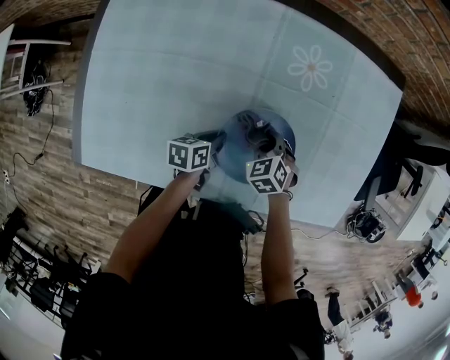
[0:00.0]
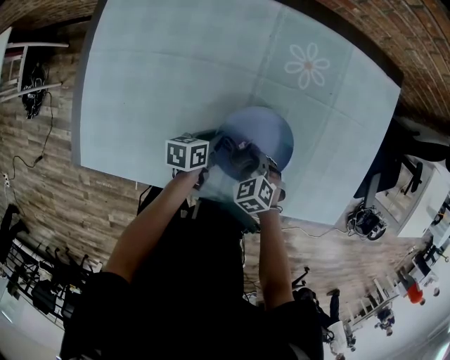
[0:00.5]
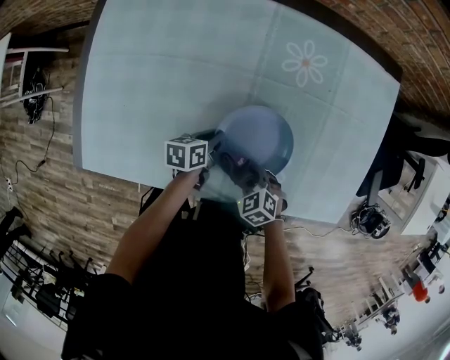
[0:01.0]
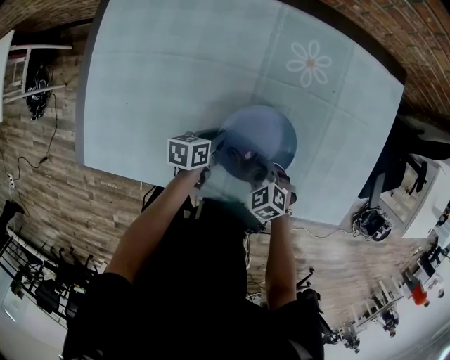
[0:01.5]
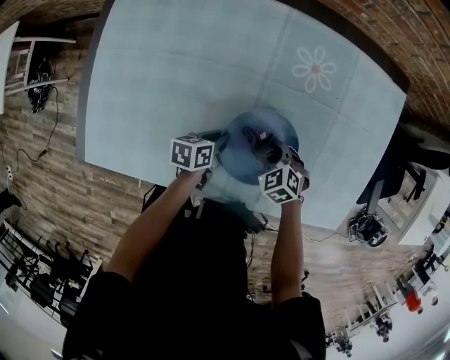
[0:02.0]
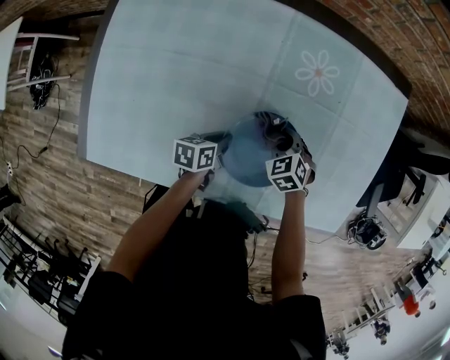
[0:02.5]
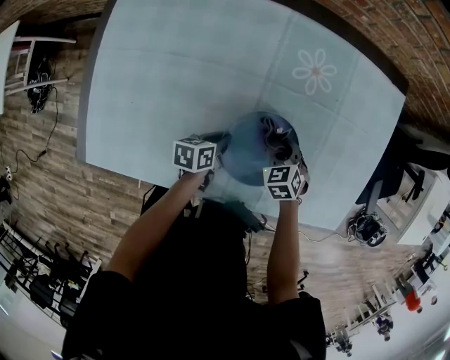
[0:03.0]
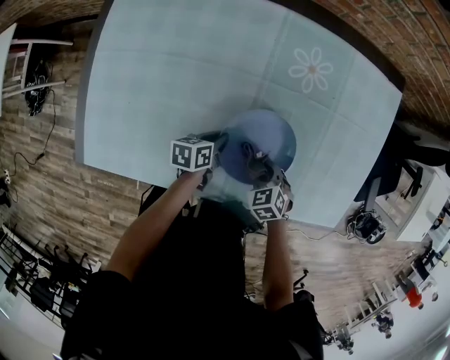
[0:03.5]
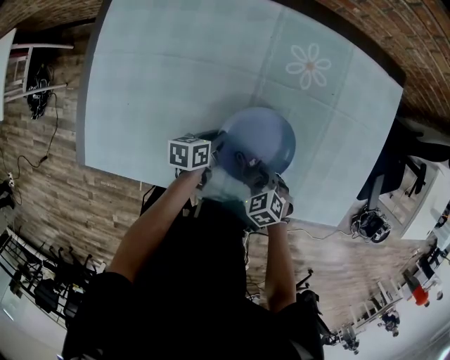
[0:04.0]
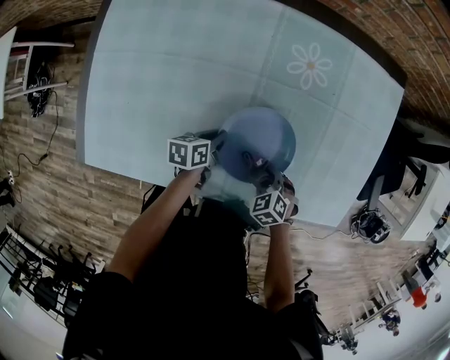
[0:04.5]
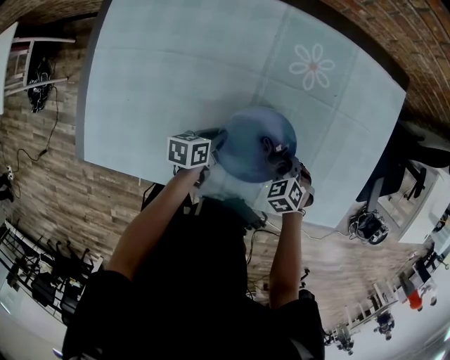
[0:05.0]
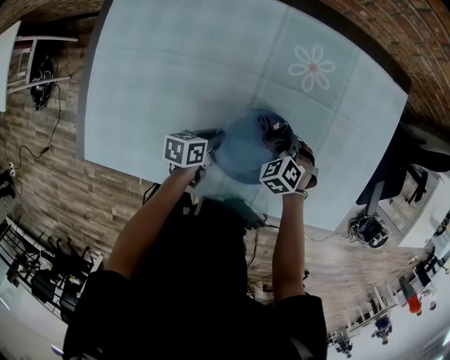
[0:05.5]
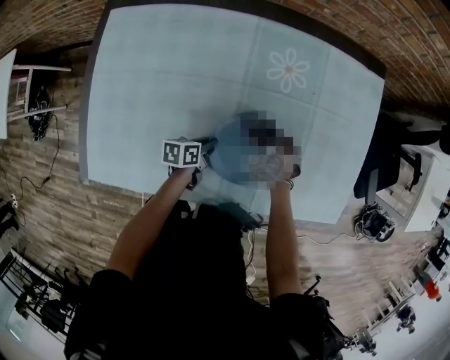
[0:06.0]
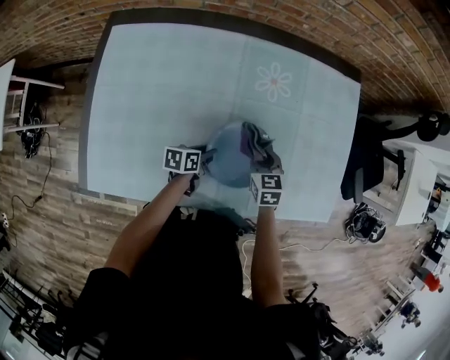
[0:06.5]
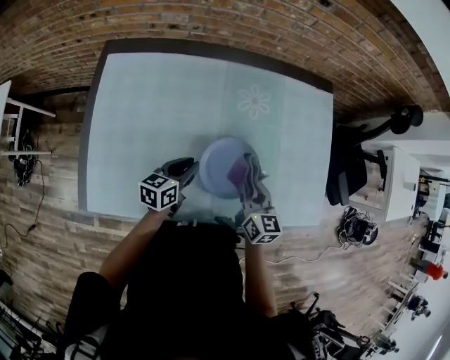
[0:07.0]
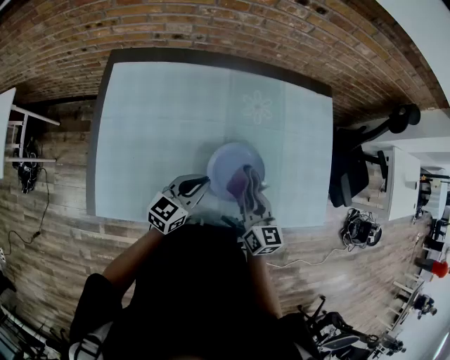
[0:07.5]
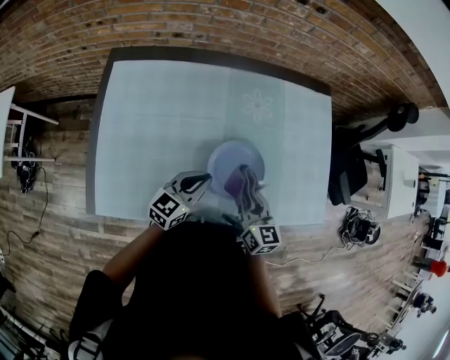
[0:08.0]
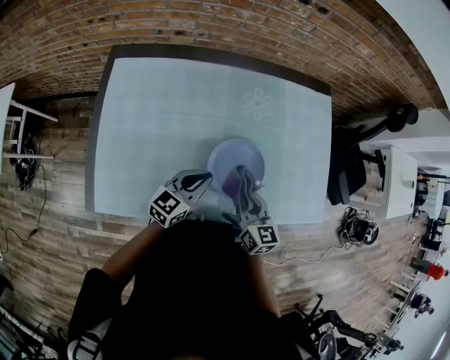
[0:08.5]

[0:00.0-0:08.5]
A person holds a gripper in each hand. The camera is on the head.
0:00.0 to 0:02.0: The right gripper goes backward and returns, approximately 15 cm each way.
0:02.0 to 0:04.0: The right gripper is displaced backward by some 10 cm.
0:04.0 to 0:06.5: The right gripper heads forward and upward, covering about 15 cm, and turns by about 40 degrees, while the left gripper opens up.
0:06.5 to 0:08.5: The right gripper travels upward and backward by about 20 cm, and turns by approximately 30 degrees; the left gripper heads upward, covering approximately 20 cm, rotates around the line of its fingers by about 40 degrees, clockwise from behind, and closes up.

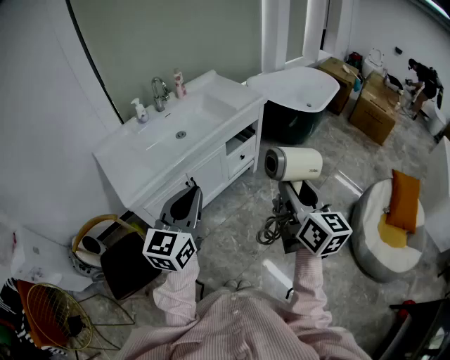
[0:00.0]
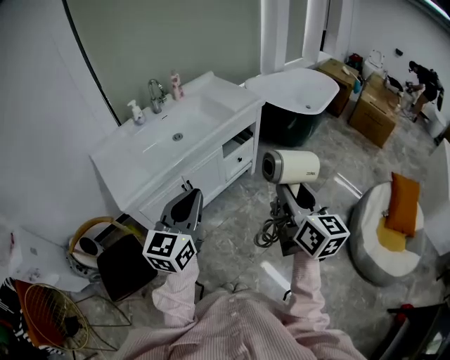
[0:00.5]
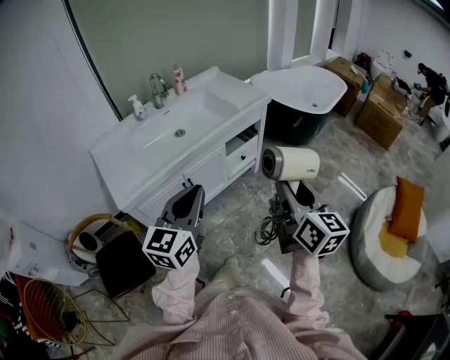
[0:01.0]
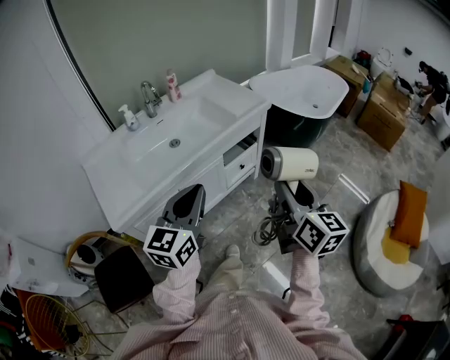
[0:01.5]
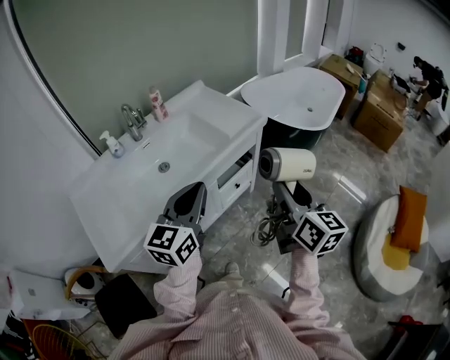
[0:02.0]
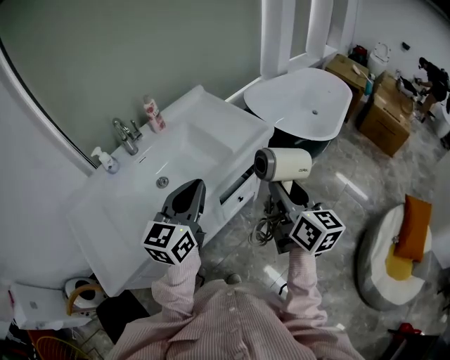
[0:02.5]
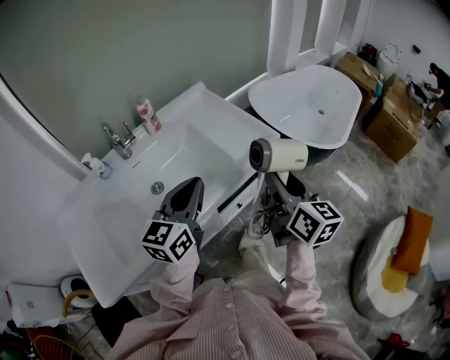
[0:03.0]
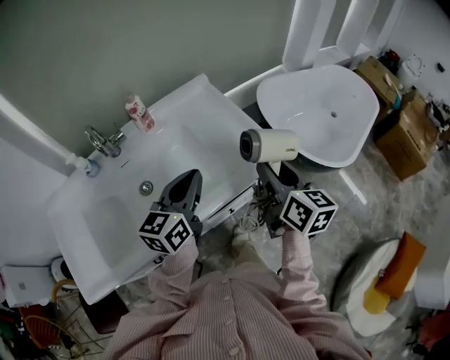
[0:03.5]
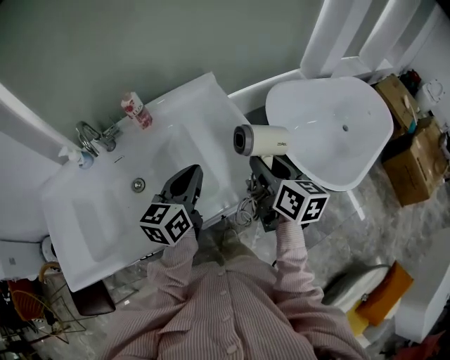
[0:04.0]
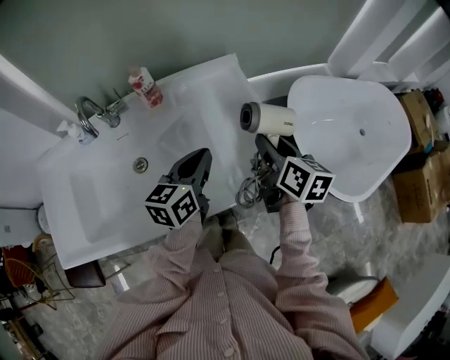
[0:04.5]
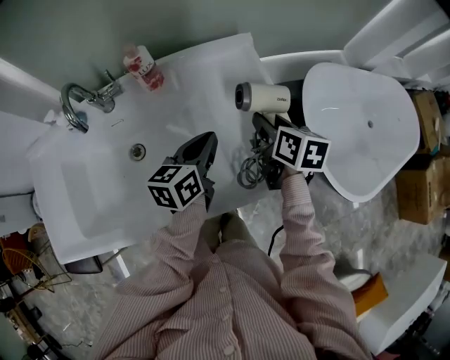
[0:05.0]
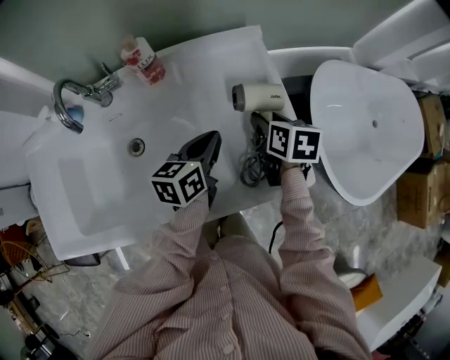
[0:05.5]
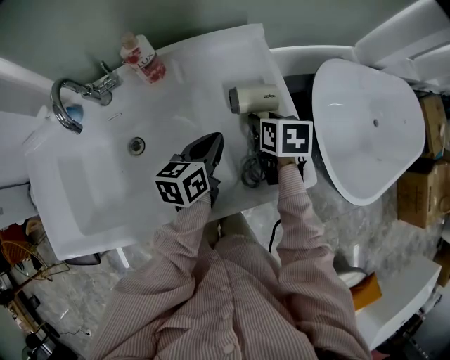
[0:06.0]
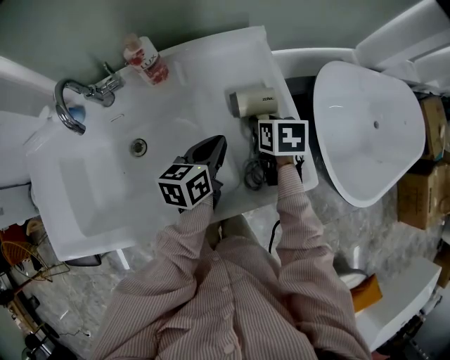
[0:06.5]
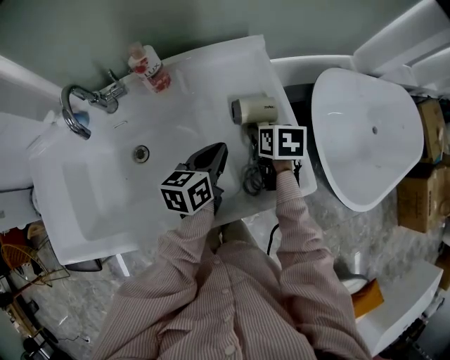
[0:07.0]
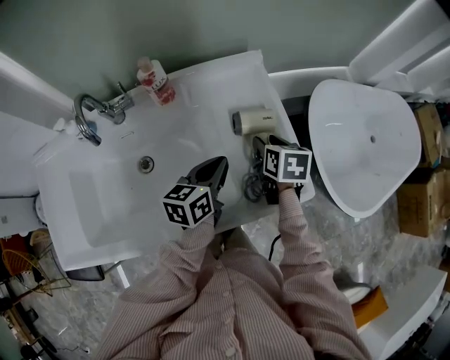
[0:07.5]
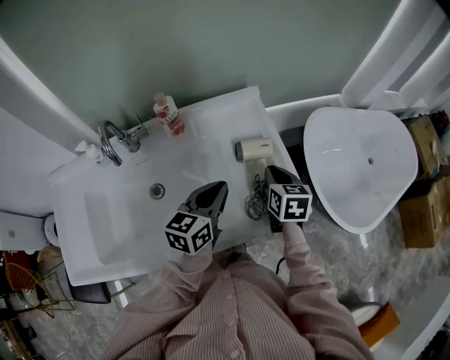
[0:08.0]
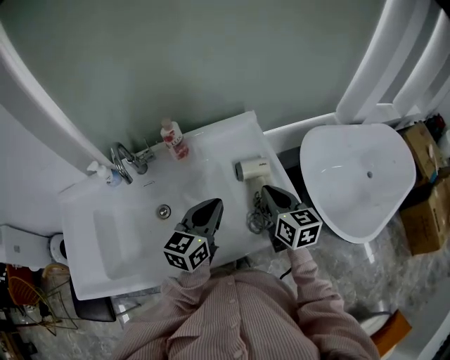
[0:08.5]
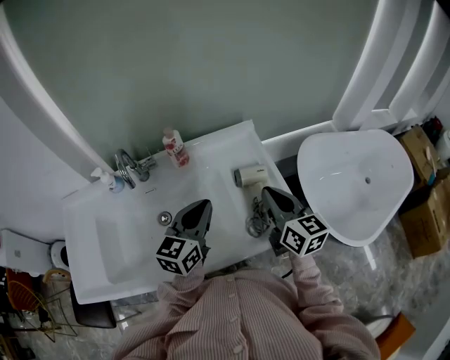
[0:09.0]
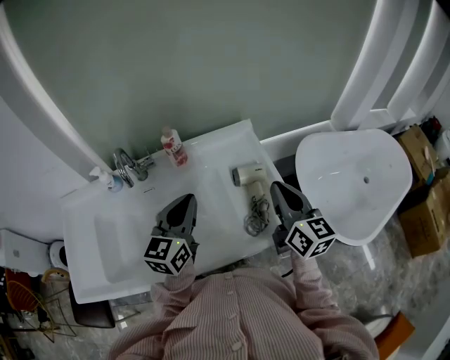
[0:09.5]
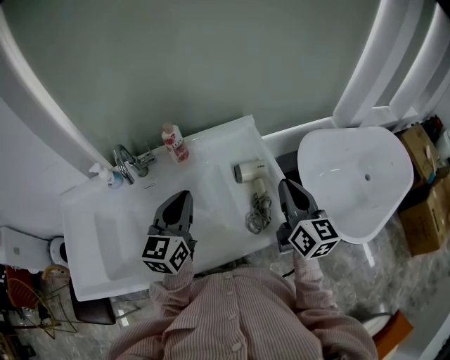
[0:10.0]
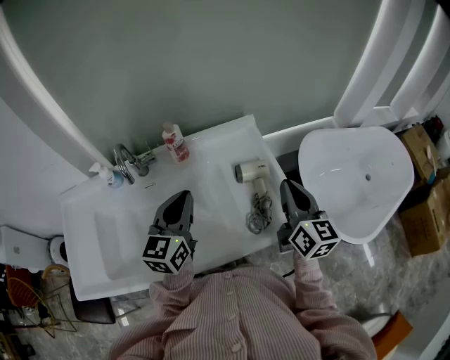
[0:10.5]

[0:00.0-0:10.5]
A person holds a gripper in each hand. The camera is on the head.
0:00.0 to 0:02.0: Both grippers move forward, about 30 cm.
0:02.0 to 0:04.0: Both grippers move forward, roughly 40 cm. The right gripper turns by about 30 degrees. Meanwhile the left gripper swivels some 20 degrees.
0:04.0 to 0:06.5: The grippers both shift downward and forward by some 20 cm. The left gripper turns by roughly 20 degrees; the right gripper tips its fingers downward by roughly 40 degrees.
0:06.5 to 0:08.5: The grippers both shift upward and backward by roughly 15 cm. The left gripper swivels about 20 degrees. Meanwhile the right gripper tilts its fingers roughly 40 degrees upward, and closes.
0:08.5 to 0:10.5: The left gripper is displaced to the left and upward by about 10 cm; the right gripper heads upward, covering some 10 cm.

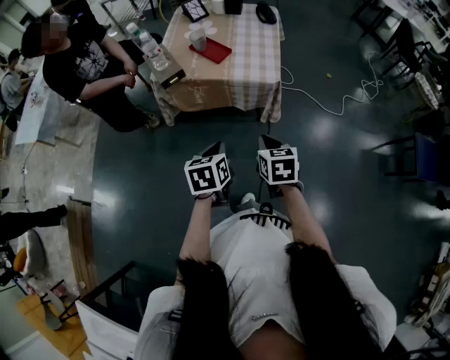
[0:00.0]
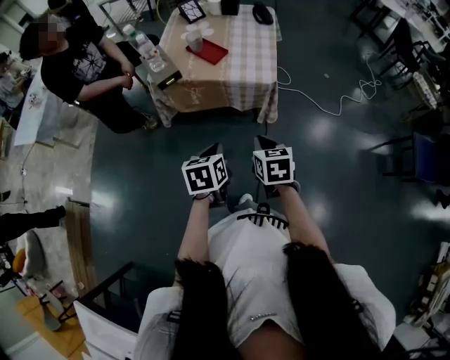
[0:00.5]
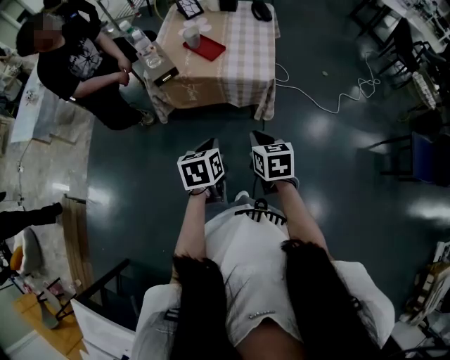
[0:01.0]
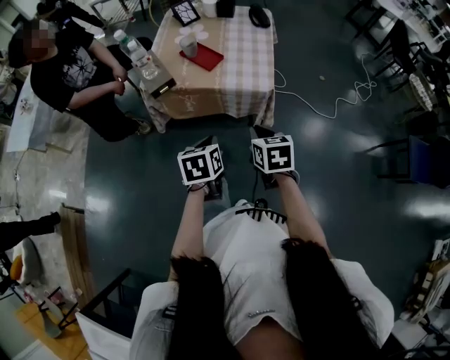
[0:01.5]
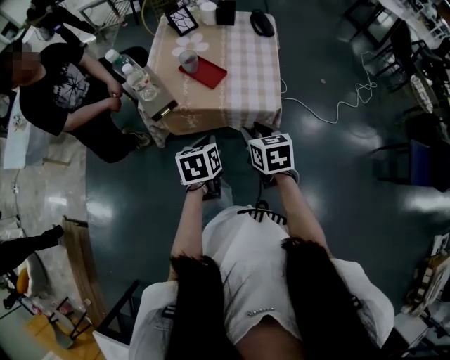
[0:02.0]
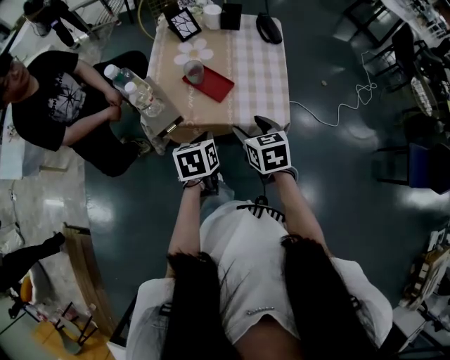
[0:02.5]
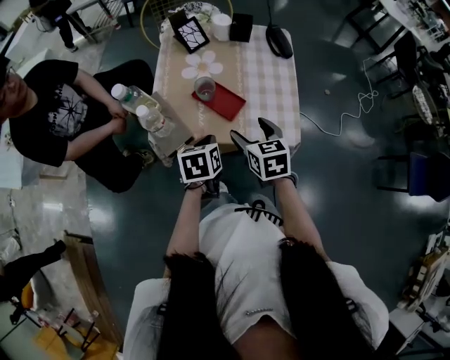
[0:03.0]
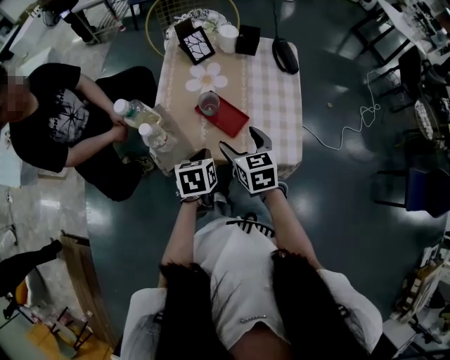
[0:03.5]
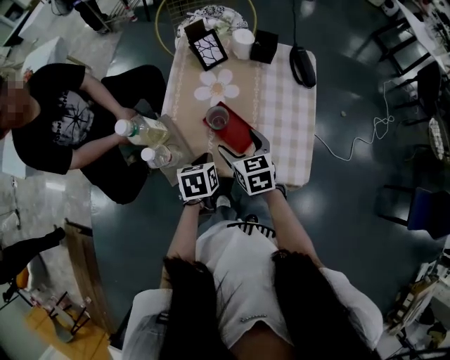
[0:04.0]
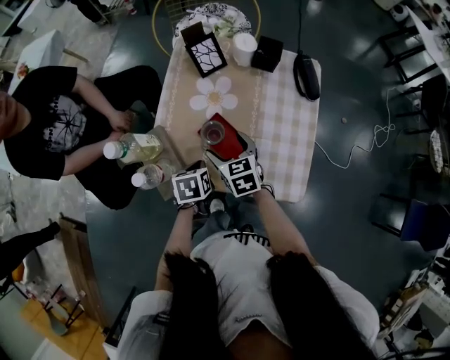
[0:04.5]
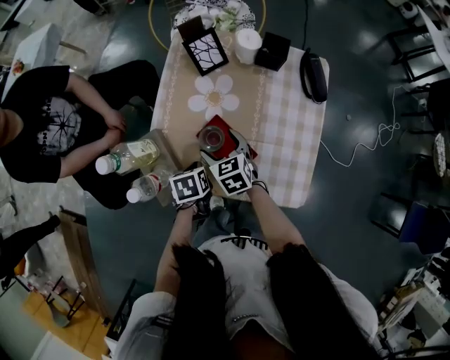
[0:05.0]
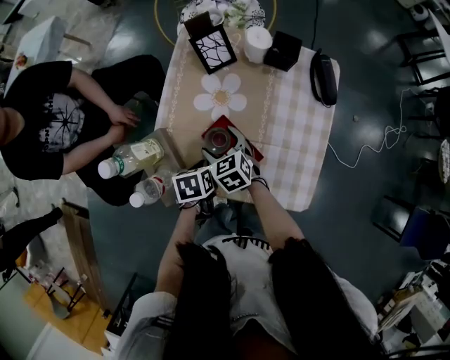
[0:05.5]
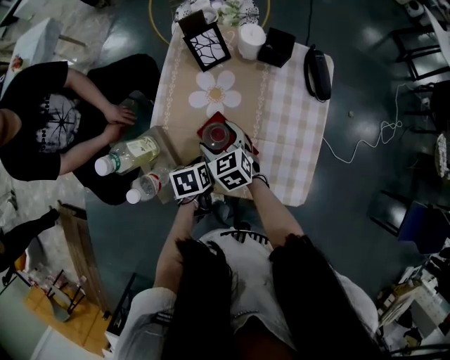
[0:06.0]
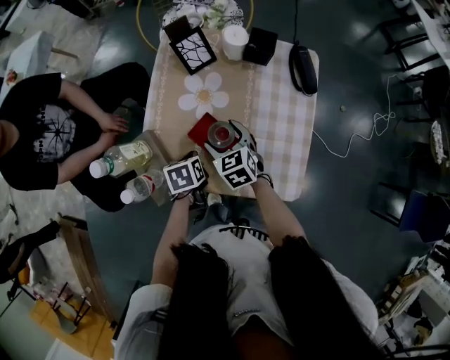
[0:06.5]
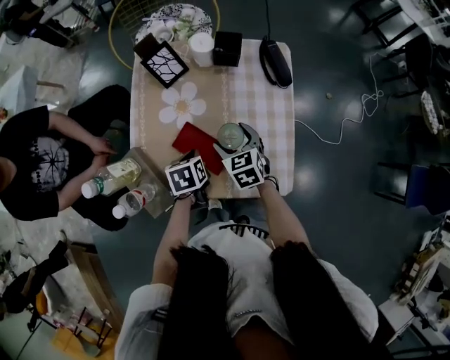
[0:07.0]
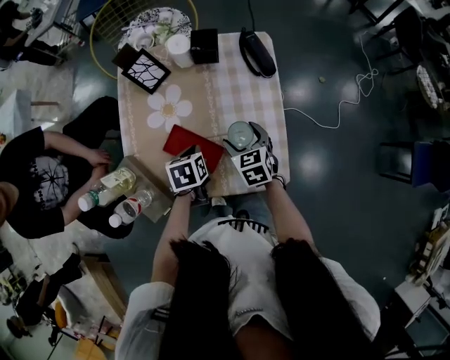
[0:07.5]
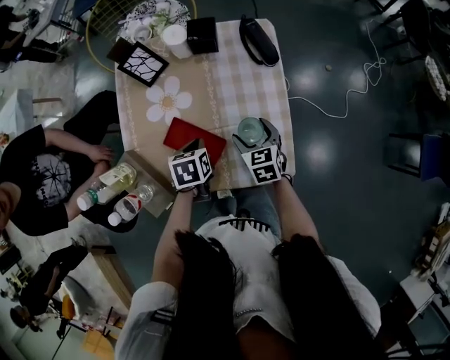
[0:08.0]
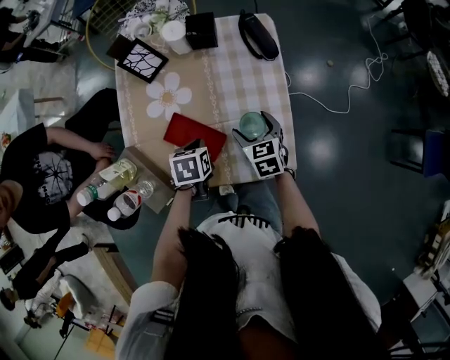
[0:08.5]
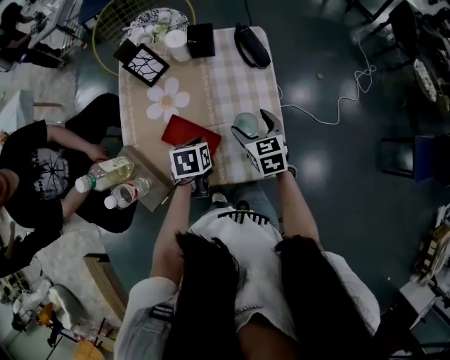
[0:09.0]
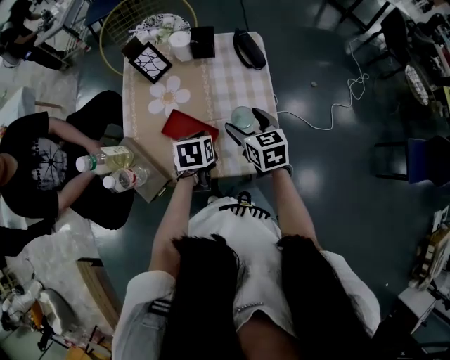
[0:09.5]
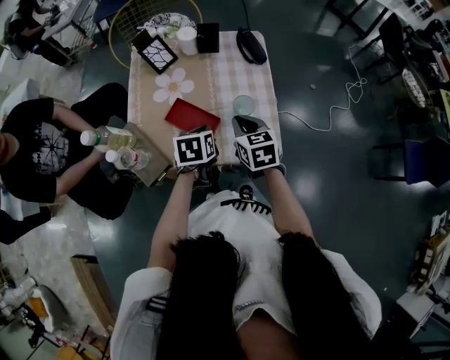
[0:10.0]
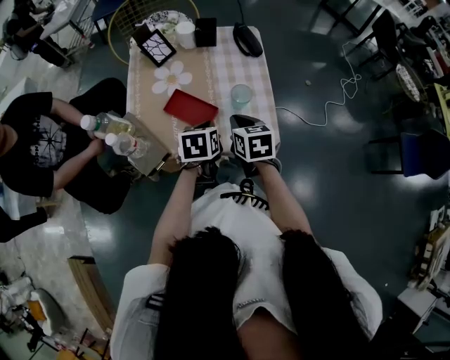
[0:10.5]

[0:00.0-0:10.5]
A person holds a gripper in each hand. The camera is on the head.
0:00.0 to 0:02.0: Both grippers move forward, roughly 20 cm.
0:02.0 to 0:04.0: The two grippers go about 30 cm forward and to the left. The right gripper opens up.
0:04.0 to 0:06.5: Both grippers move forward and downward, some 10 cm.
0:06.5 to 0:08.5: The left gripper moves to the right, roughly 10 cm, and swivels some 20 degrees, while the right gripper travels to the right by approximately 20 cm, and swivels some 20 degrees.
0:08.5 to 0:10.5: The right gripper travels backward and upward by approximately 15 cm, and closes up; the left gripper moves upward and backward, some 15 cm.
